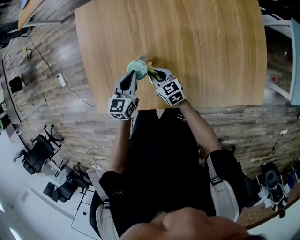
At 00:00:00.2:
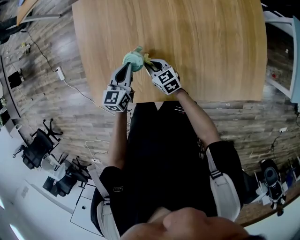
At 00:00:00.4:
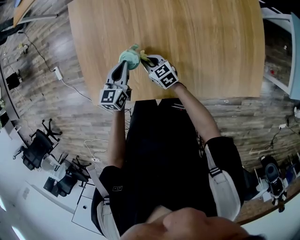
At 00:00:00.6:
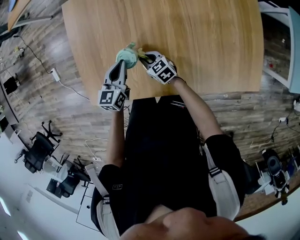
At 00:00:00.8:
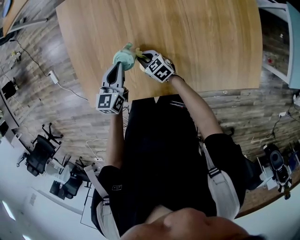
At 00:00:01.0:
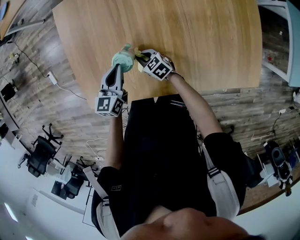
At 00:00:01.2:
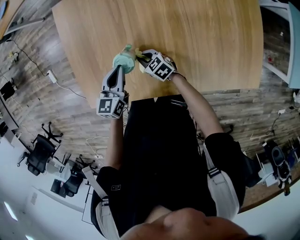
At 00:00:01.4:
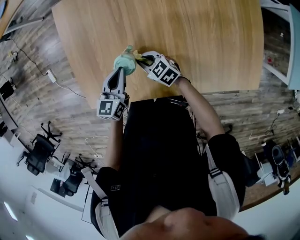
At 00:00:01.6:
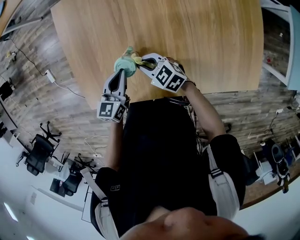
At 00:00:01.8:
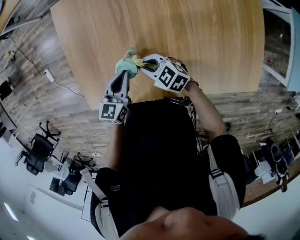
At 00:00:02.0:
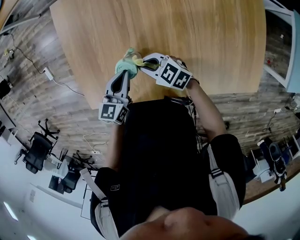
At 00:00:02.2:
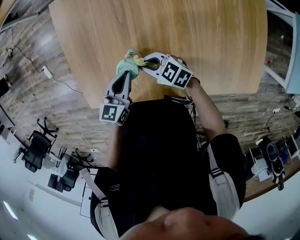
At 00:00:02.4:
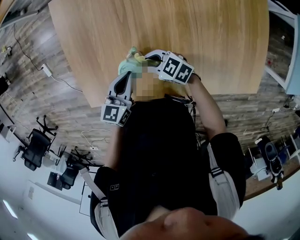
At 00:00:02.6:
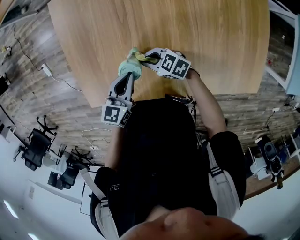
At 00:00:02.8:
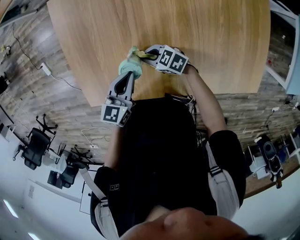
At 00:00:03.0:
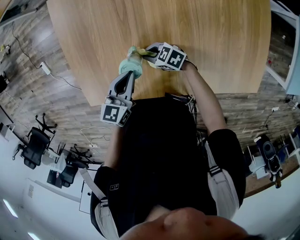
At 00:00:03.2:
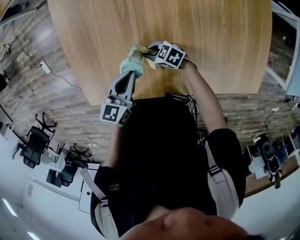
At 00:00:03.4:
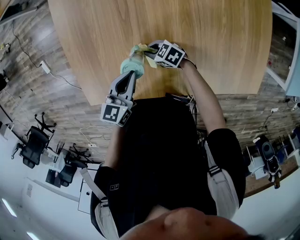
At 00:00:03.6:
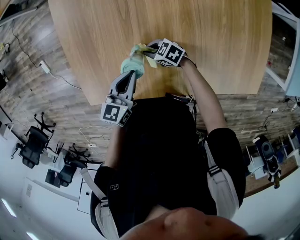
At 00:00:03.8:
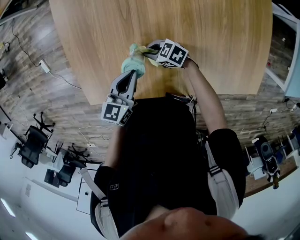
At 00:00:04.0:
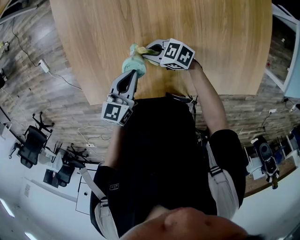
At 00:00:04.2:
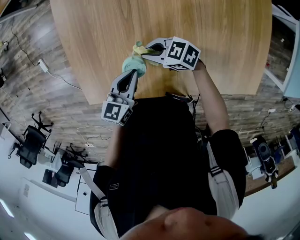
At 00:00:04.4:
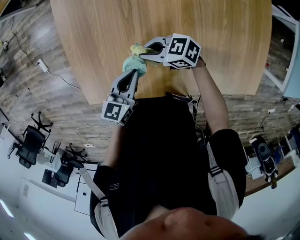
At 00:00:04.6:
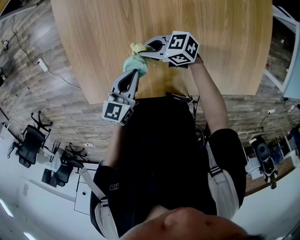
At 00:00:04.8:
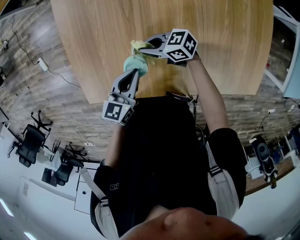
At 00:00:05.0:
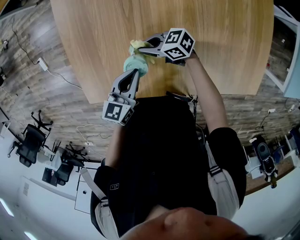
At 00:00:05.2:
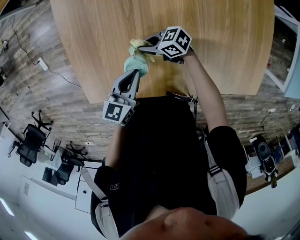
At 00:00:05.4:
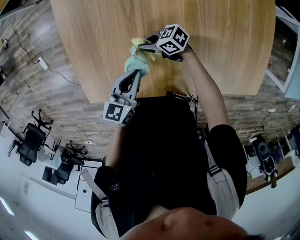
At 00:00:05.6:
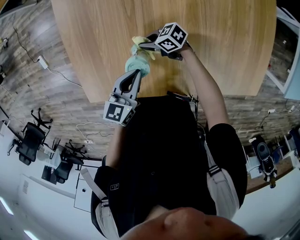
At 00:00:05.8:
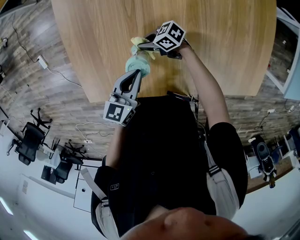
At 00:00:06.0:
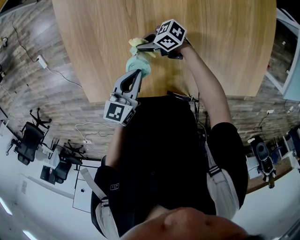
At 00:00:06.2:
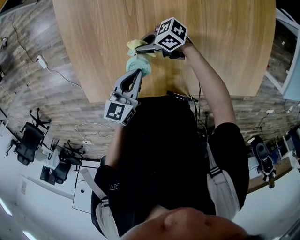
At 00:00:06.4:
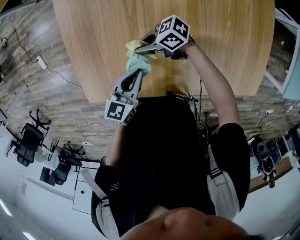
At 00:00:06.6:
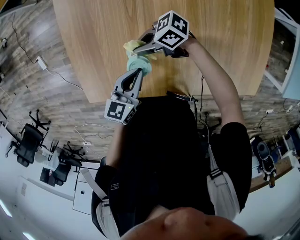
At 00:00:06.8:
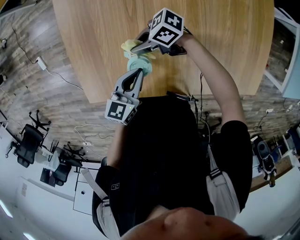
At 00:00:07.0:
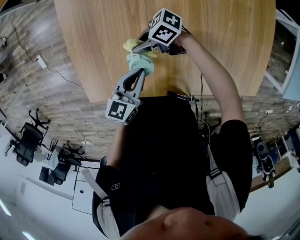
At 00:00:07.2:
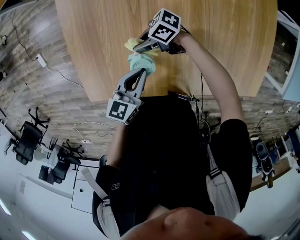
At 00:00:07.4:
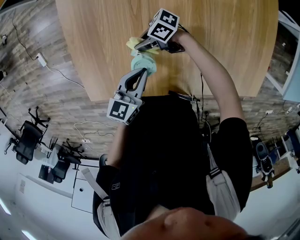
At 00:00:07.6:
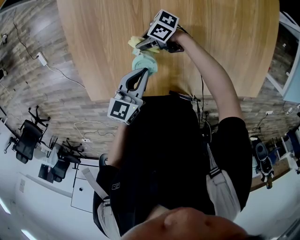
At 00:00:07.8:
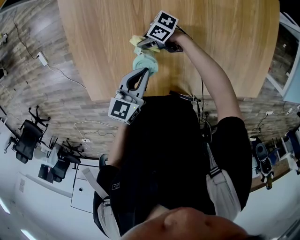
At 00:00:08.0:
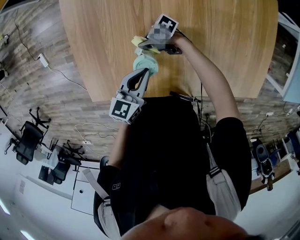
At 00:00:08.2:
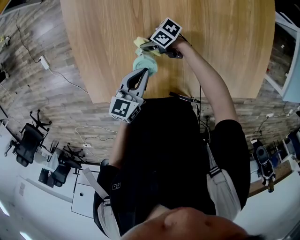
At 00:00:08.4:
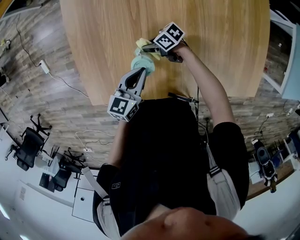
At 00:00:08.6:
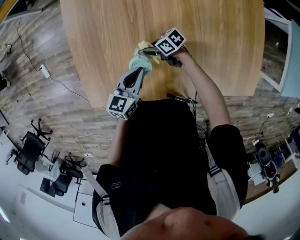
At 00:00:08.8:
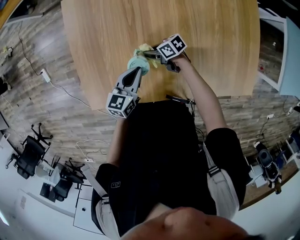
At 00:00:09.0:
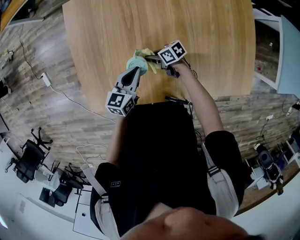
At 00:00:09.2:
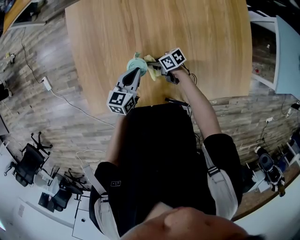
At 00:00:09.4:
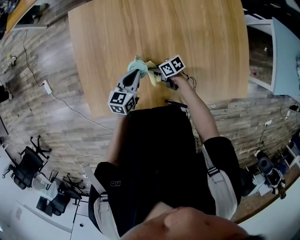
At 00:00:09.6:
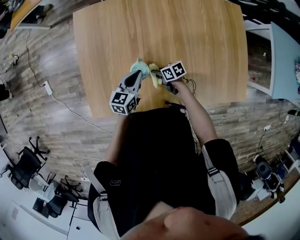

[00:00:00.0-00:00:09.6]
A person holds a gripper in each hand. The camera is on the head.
00:00:00.0 to 00:00:01.6: The right gripper swivels approximately 30 degrees.
00:00:01.6 to 00:00:03.2: The right gripper moves downward, approximately 10 cm, and rotates some 20 degrees.
00:00:03.2 to 00:00:04.8: The right gripper goes roughly 10 cm upward, and turns by roughly 20 degrees.
00:00:04.8 to 00:00:06.4: The right gripper goes downward and returns, about 10 cm each way.
00:00:06.4 to 00:00:08.0: The right gripper moves downward, approximately 10 cm.
00:00:08.0 to 00:00:09.6: The right gripper moves some 10 cm, and turns by about 40 degrees.

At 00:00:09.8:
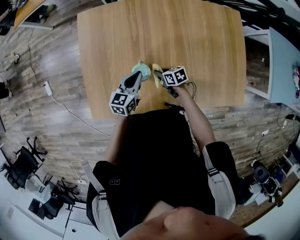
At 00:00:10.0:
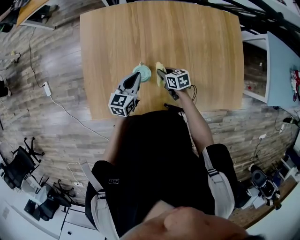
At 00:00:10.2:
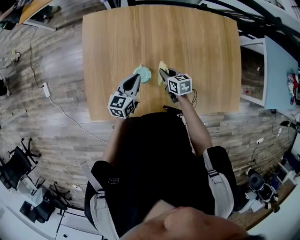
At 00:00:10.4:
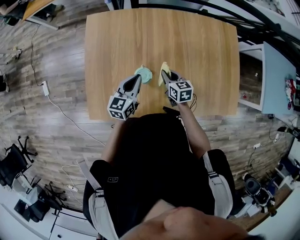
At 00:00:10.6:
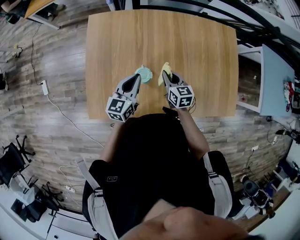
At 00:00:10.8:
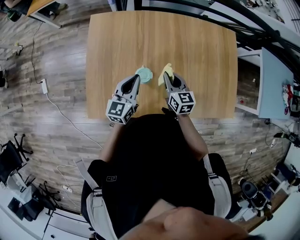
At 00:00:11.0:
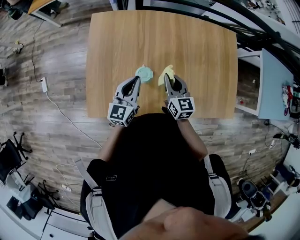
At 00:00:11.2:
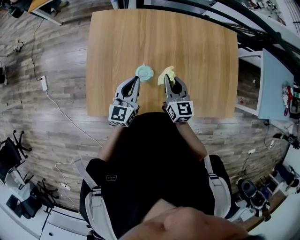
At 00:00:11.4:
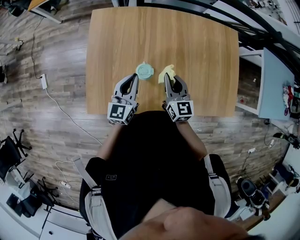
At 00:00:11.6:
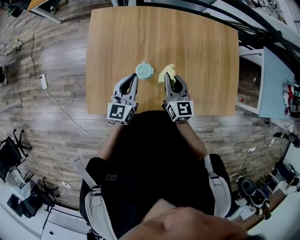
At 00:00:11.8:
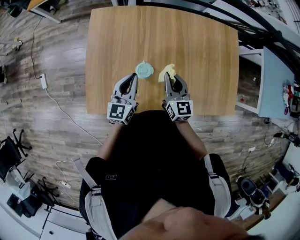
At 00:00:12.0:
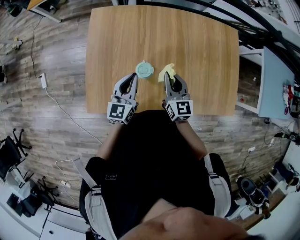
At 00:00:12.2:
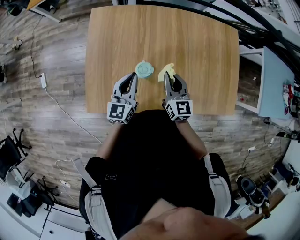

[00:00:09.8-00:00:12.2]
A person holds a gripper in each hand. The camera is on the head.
00:00:09.8 to 00:00:11.0: The right gripper is displaced upward by approximately 20 cm, and turns by approximately 50 degrees. The left gripper shifts about 10 cm upward, and turns by about 20 degrees.
00:00:11.0 to 00:00:12.2: There are only small adjustments of the grippers.

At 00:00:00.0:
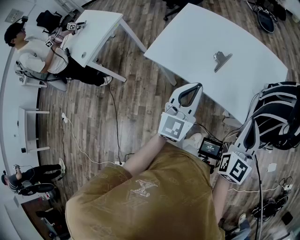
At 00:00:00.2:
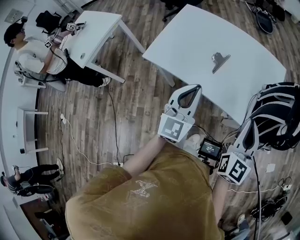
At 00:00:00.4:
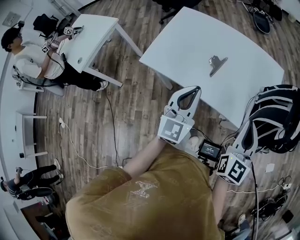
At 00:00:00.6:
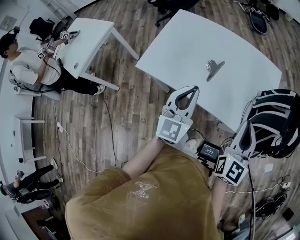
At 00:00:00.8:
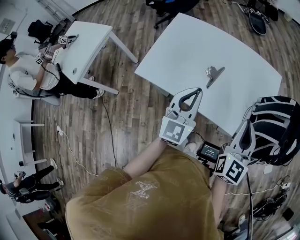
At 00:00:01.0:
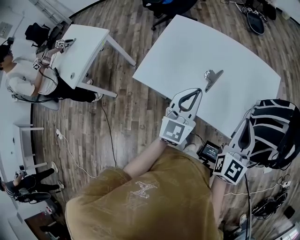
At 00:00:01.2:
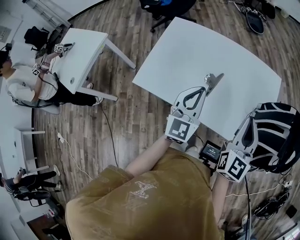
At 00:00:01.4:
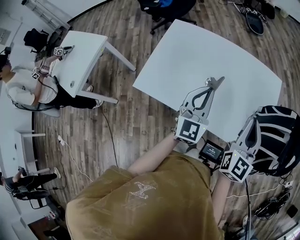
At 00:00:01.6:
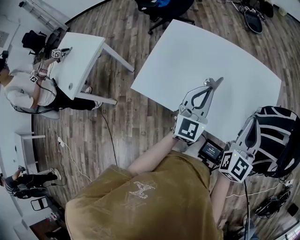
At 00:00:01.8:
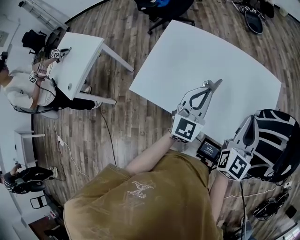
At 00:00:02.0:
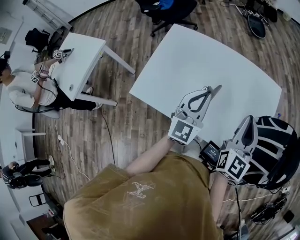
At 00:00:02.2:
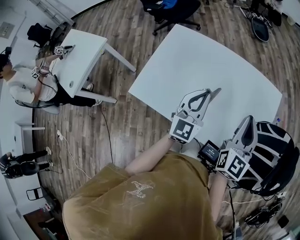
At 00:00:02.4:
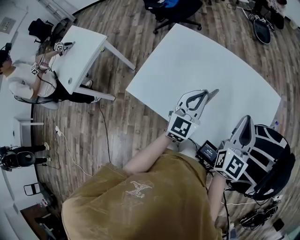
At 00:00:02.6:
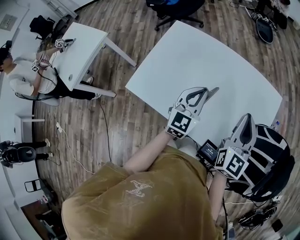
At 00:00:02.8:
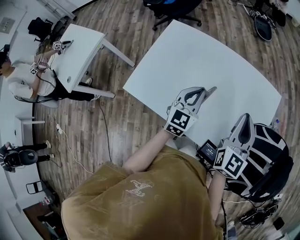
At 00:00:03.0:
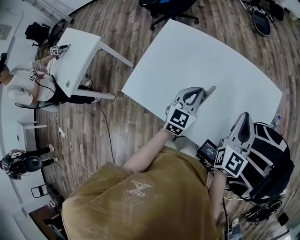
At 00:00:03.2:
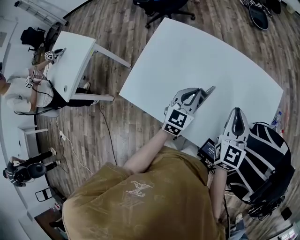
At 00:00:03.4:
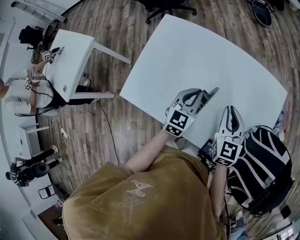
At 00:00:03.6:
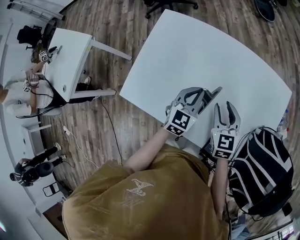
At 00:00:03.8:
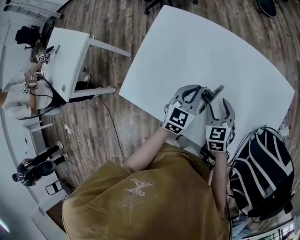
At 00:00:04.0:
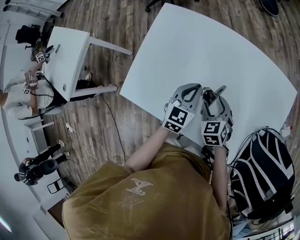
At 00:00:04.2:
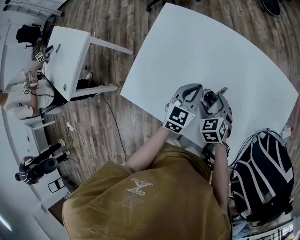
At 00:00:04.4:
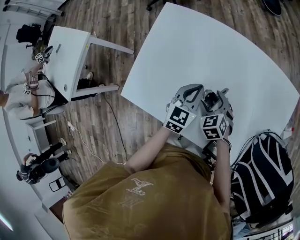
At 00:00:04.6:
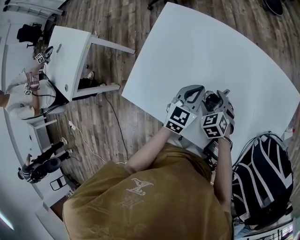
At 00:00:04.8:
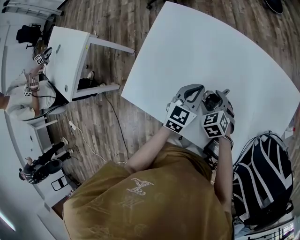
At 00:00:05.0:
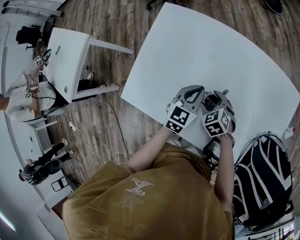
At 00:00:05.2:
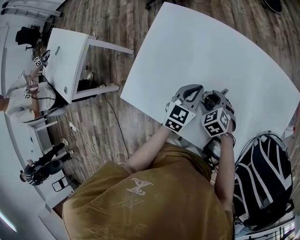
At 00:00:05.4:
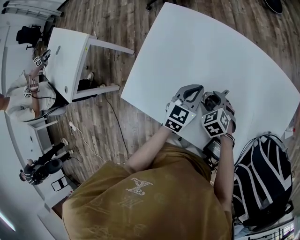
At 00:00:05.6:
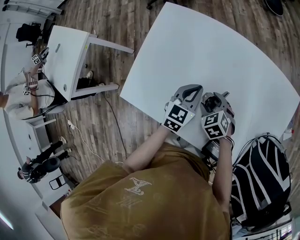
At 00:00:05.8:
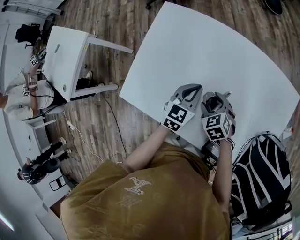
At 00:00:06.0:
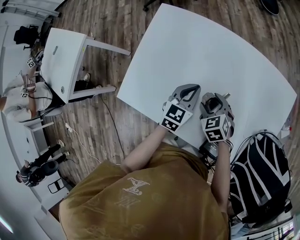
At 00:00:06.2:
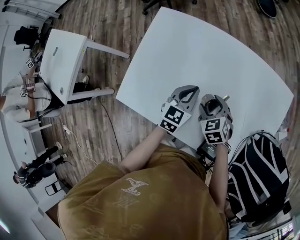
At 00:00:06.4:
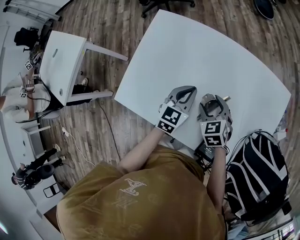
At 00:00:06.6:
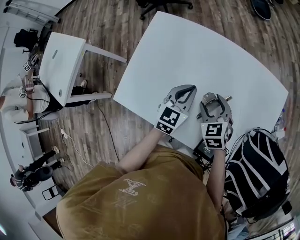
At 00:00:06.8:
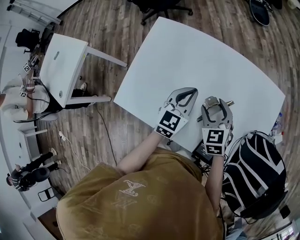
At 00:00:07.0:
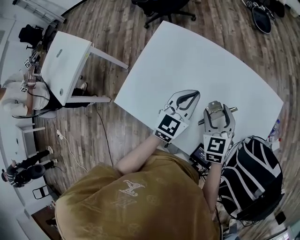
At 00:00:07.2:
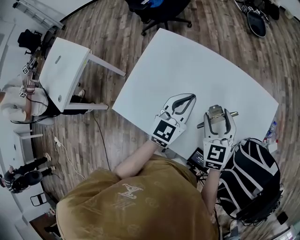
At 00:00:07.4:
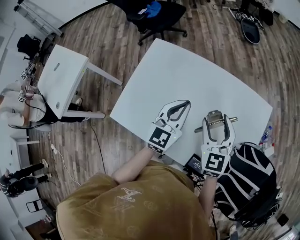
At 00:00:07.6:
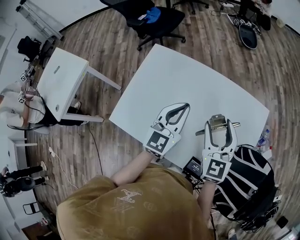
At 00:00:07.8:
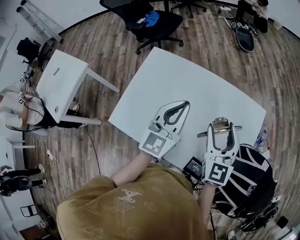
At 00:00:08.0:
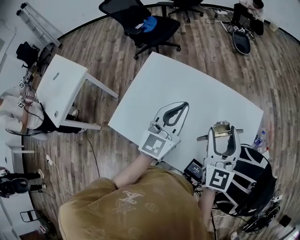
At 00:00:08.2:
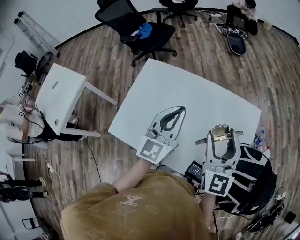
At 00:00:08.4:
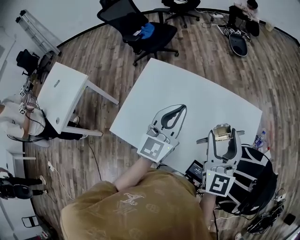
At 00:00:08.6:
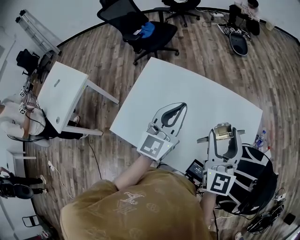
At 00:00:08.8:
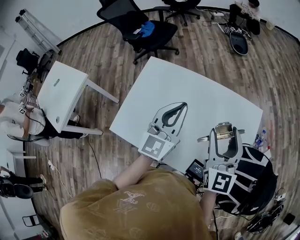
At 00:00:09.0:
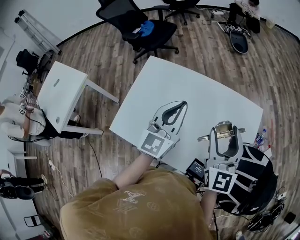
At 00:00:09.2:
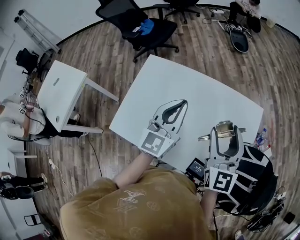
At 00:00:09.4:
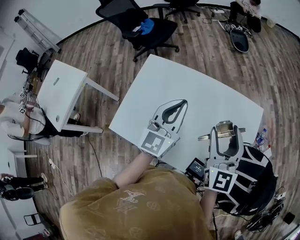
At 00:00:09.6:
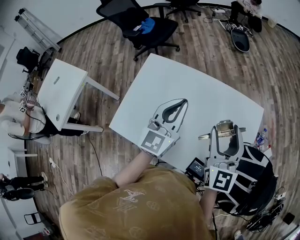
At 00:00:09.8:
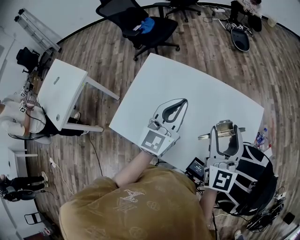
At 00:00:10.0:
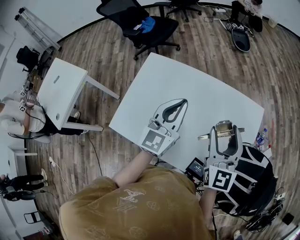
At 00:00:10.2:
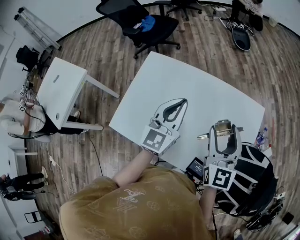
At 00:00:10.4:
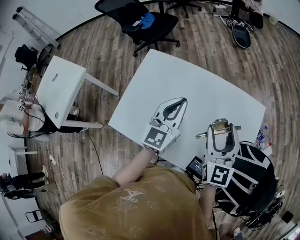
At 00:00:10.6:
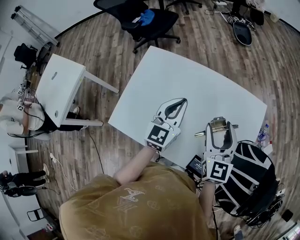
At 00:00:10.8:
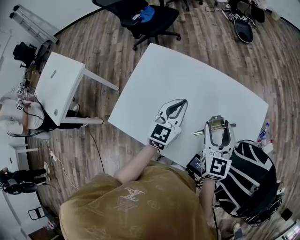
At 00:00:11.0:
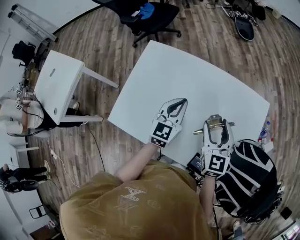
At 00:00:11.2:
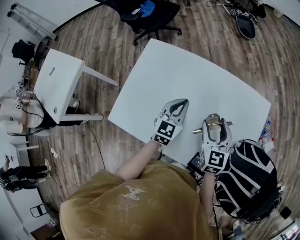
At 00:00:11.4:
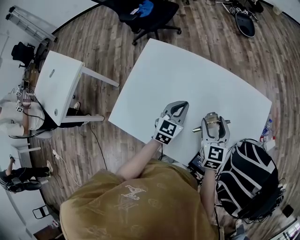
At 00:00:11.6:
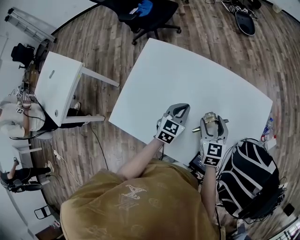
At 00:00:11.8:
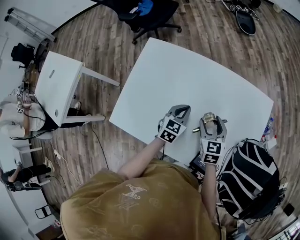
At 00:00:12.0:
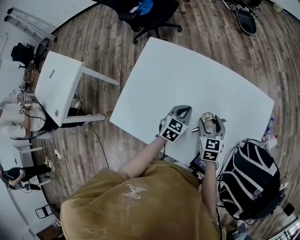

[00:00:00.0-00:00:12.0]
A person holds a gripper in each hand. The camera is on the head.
00:00:00.0 to 00:00:01.6: The two grippers go approximately 15 cm forward.
00:00:01.6 to 00:00:03.0: The left gripper is displaced downward and forward by some 15 cm; the right gripper shifts about 10 cm forward.
00:00:03.0 to 00:00:04.4: The right gripper is displaced downward and to the left by approximately 35 cm, tips its fingers downward by roughly 40 degrees, and opens. Meanwhile the left gripper goes roughly 10 cm downward and forward.
00:00:04.4 to 00:00:06.0: The grippers move only a little.
00:00:06.0 to 00:00:07.6: The two grippers go some 25 cm upward. The right gripper points its fingers approximately 40 degrees further upward; the left gripper turns by about 20 degrees.
00:00:07.6 to 00:00:09.0: The two grippers go roughly 10 cm upward.
00:00:09.0 to 00:00:10.4: The left gripper changes place by about 5 cm.
00:00:10.4 to 00:00:12.0: Both grippers travel together downward, roughly 25 cm. The left gripper tips its fingers downward by roughly 30 degrees. The right gripper angles its fingers downward, by some 30 degrees.
